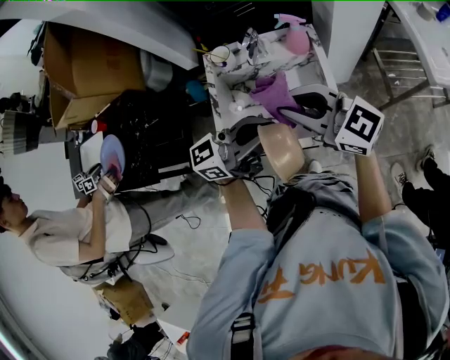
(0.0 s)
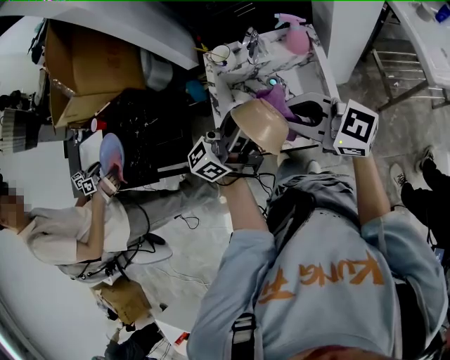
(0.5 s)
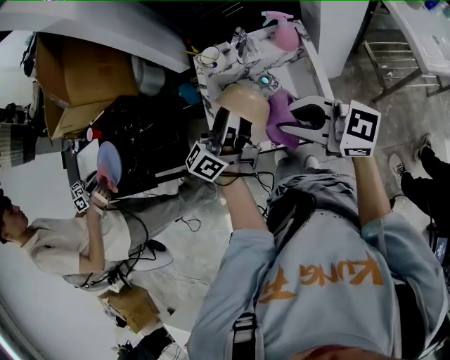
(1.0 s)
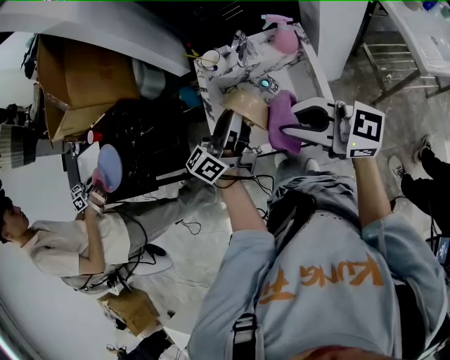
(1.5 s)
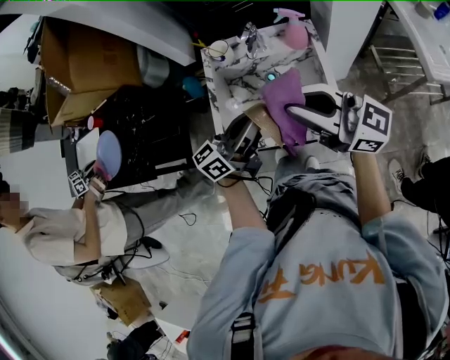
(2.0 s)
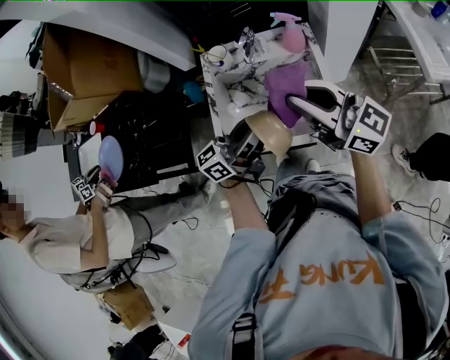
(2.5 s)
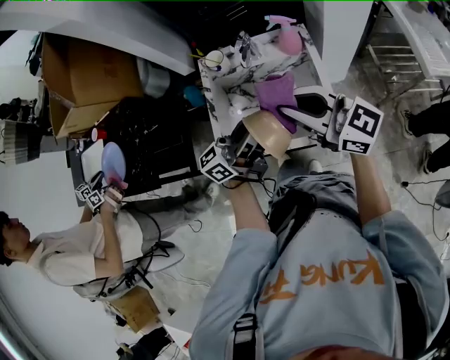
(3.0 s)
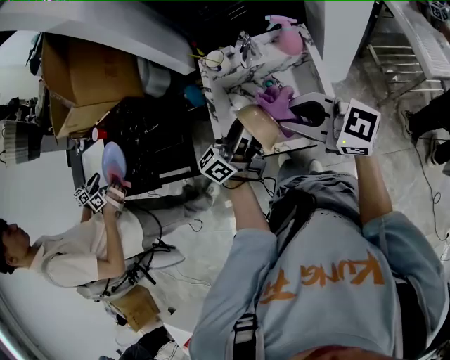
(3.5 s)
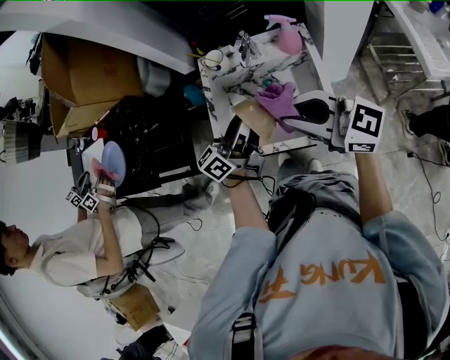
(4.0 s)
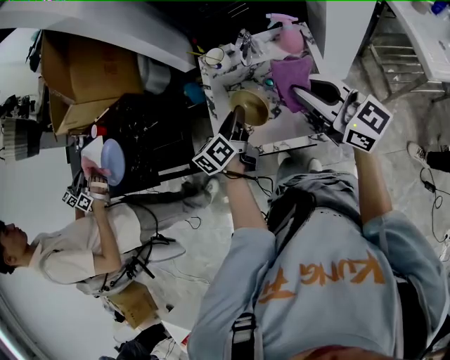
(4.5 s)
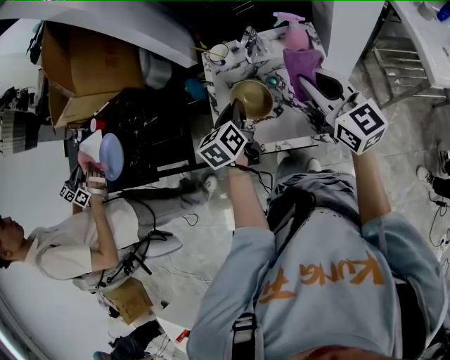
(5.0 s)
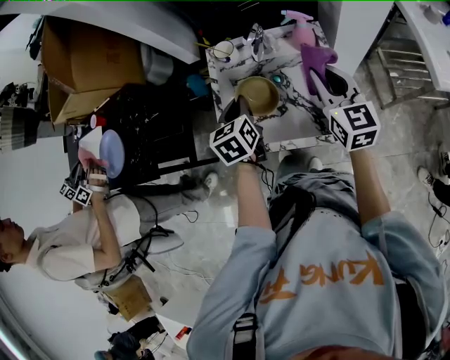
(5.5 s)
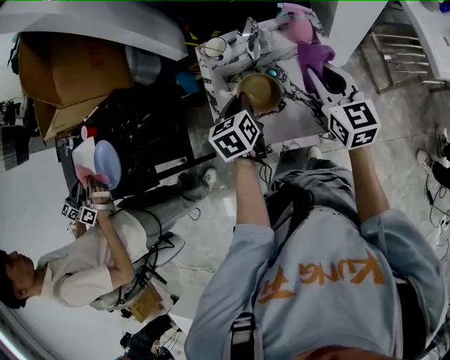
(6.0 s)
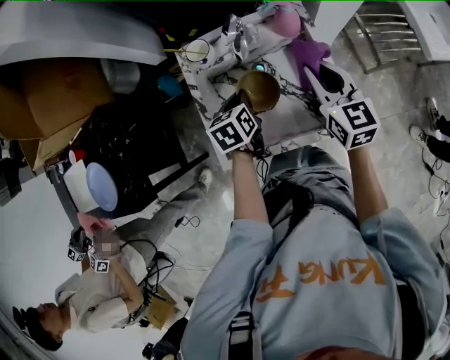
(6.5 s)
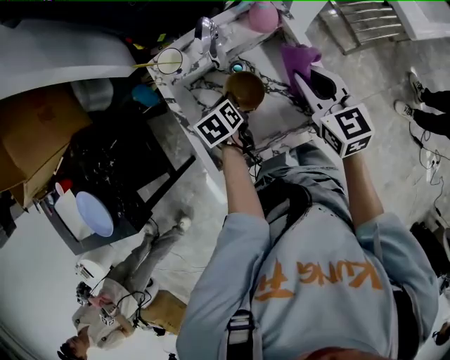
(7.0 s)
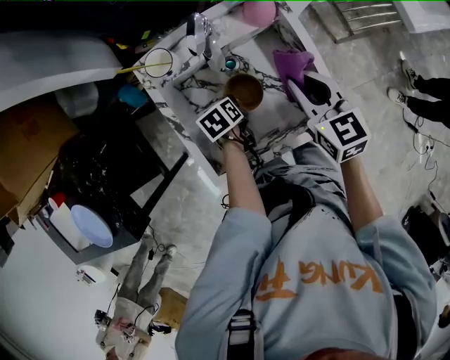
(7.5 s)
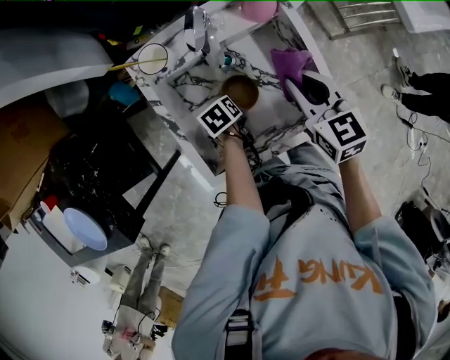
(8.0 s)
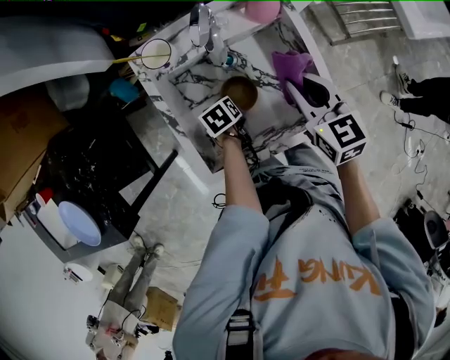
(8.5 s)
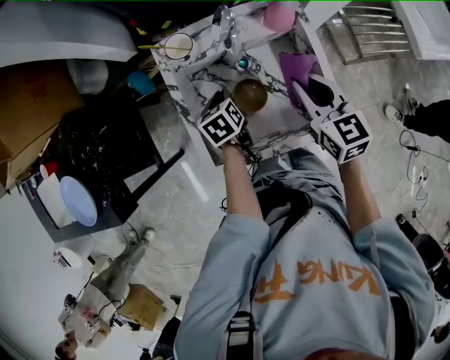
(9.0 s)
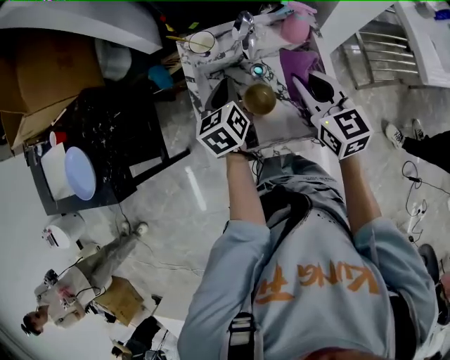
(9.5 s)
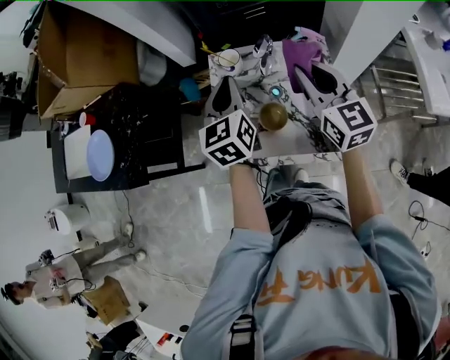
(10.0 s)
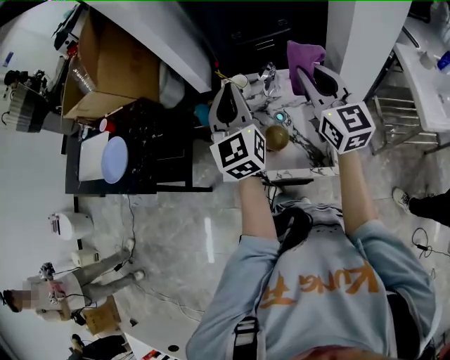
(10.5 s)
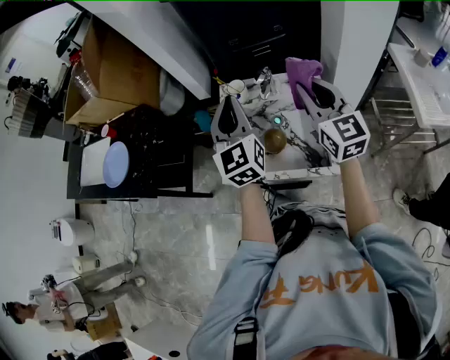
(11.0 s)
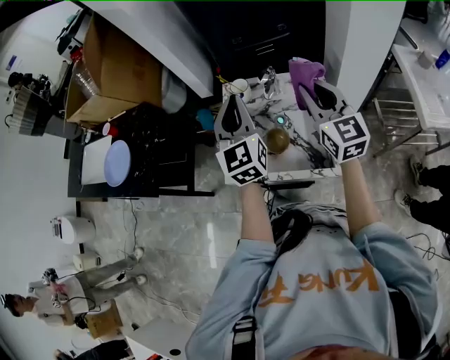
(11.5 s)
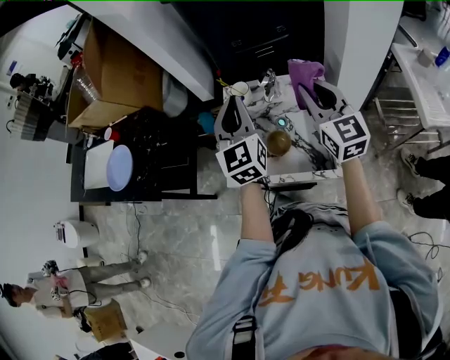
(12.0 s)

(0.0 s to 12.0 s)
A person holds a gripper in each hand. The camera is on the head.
0.0 s - 2.0 s: The left gripper moves downward, some 5 cm, and turns by approximately 20 degrees. Meanwhile the right gripper swivels about 20 degrees.
4.0 s - 6.0 s: The left gripper heads downward and forward, covering some 15 cm, and angles its fingers downward, by roughly 50 degrees. The right gripper goes some 15 cm forward, downward and to the right, and turns by some 50 degrees.
6.0 s - 8.0 s: The left gripper heads downward, covering approximately 25 cm, and rotates approximately 40 degrees; the right gripper goes about 10 cm downward.
8.0 s - 10.0 s: The right gripper moves upward, approximately 15 cm, and rotates roughly 30 degrees. The left gripper moves upward, about 40 cm, and angles its fingers upward, by some 50 degrees.
10.0 s - 12.0 s: The left gripper is displaced upward and backward by some 10 cm, and turns by roughly 20 degrees. Meanwhile the right gripper moves upward, about 5 cm.

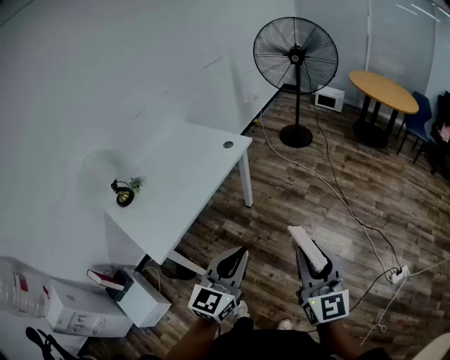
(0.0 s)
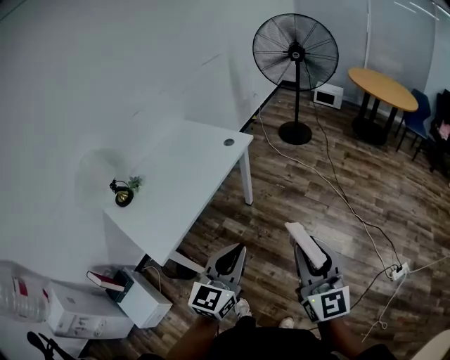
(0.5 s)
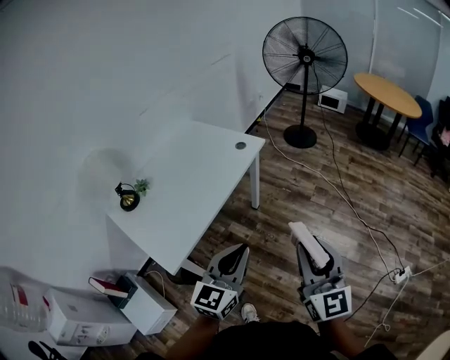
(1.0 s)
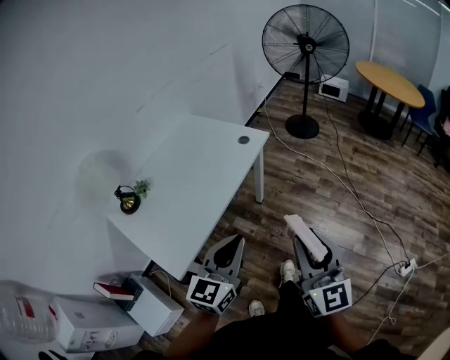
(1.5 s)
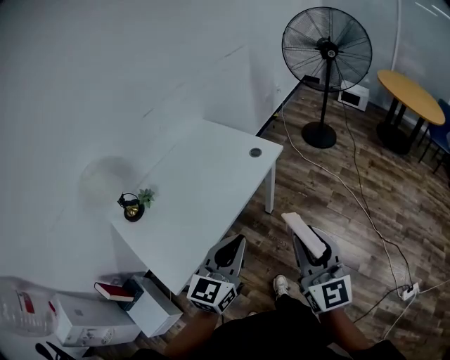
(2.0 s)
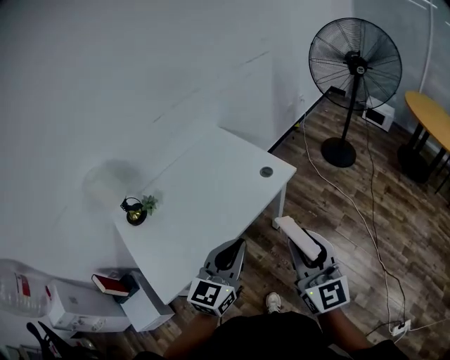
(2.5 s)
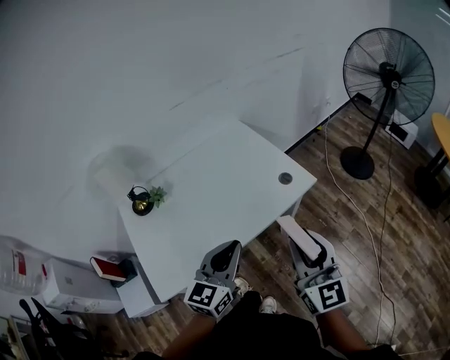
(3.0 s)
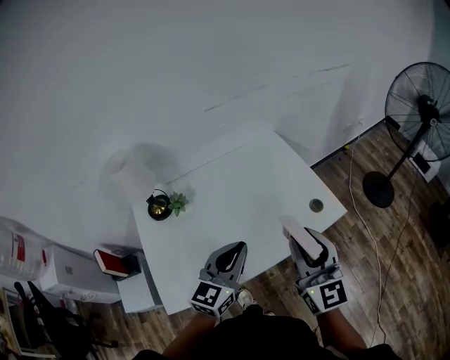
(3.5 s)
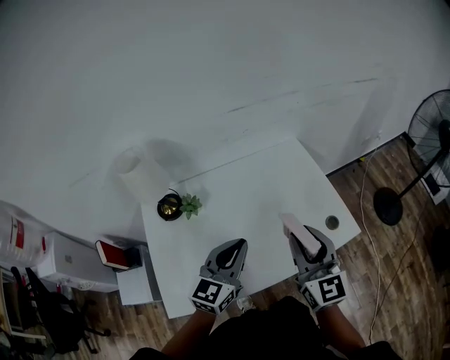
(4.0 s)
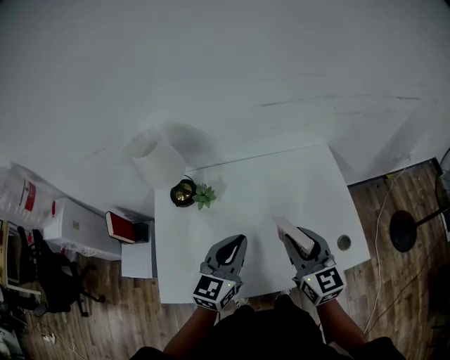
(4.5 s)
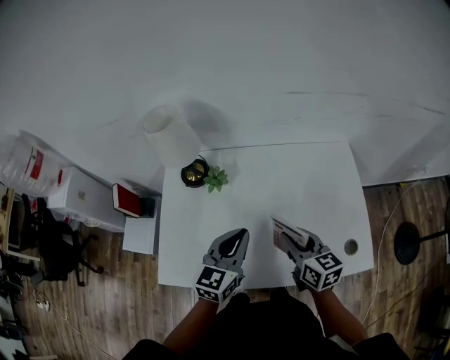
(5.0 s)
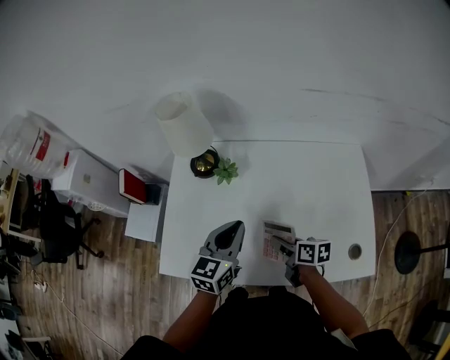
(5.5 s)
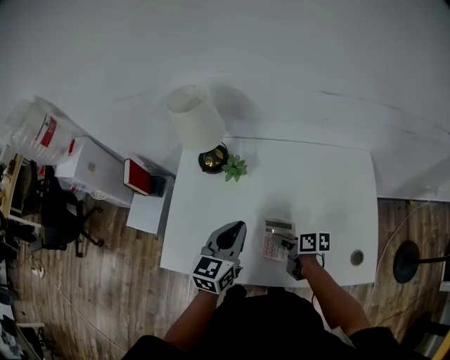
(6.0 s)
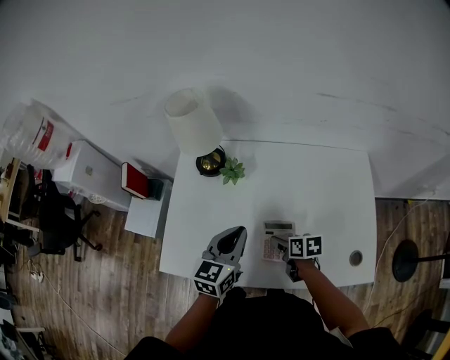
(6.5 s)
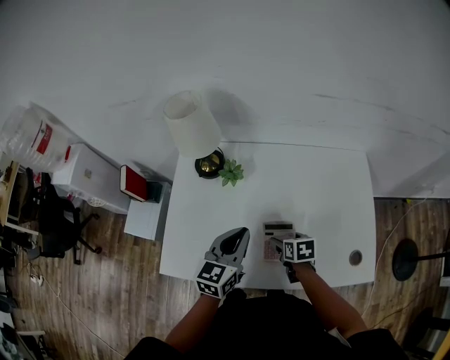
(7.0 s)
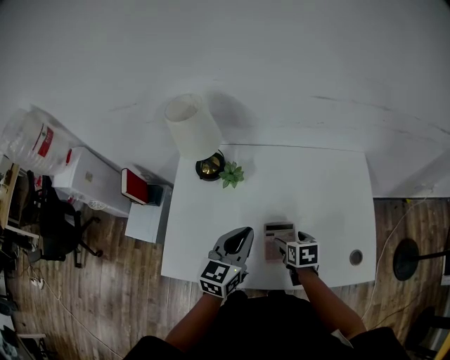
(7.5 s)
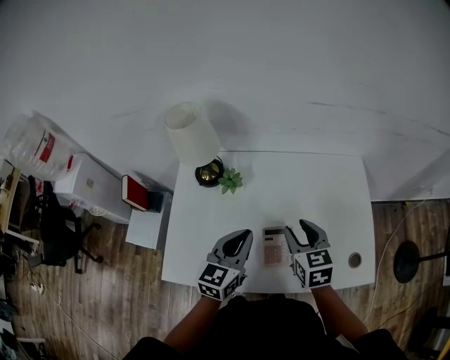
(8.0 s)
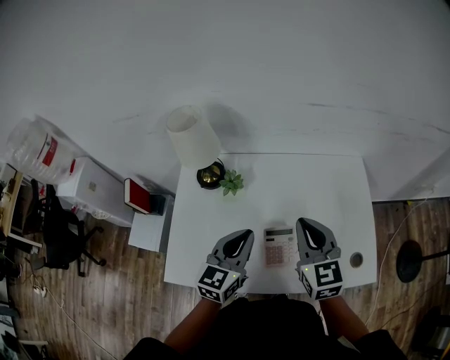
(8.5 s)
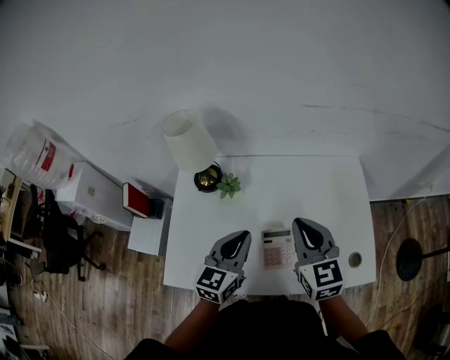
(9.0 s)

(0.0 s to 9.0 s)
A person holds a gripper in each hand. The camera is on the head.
0.0 s - 2.0 s: The two grippers go approximately 25 cm forward and to the left.
2.0 s - 4.5 s: The left gripper ends up approximately 40 cm from where it was, and swivels about 40 degrees; the right gripper changes place by some 50 cm, and swivels roughly 50 degrees.
4.5 s - 7.0 s: The left gripper shifts about 5 cm downward, while the right gripper moves downward, roughly 25 cm, angles its fingers downward, by about 50 degrees, and opens its fingers.
7.0 s - 9.0 s: The right gripper shifts approximately 30 cm upward, tilts its fingers about 40 degrees upward, and closes its fingers.

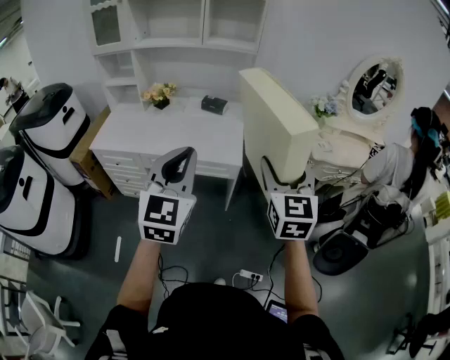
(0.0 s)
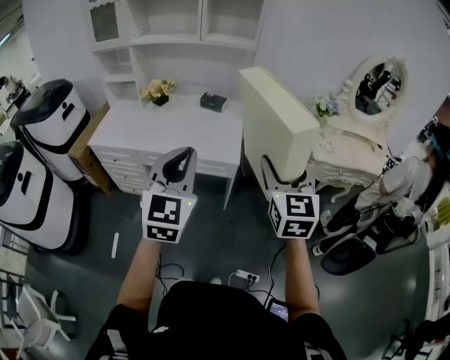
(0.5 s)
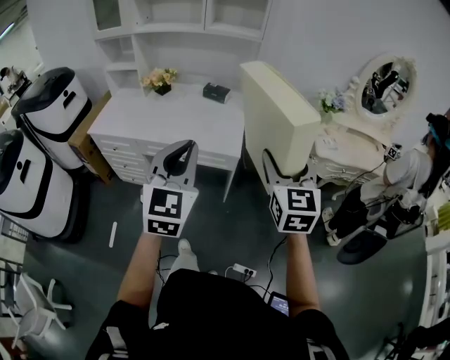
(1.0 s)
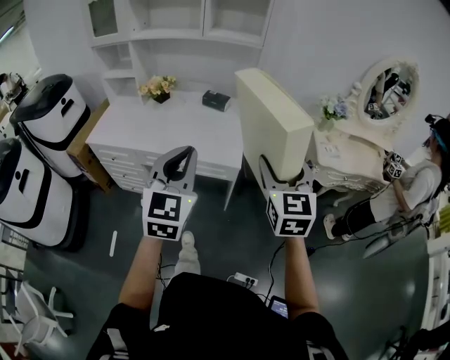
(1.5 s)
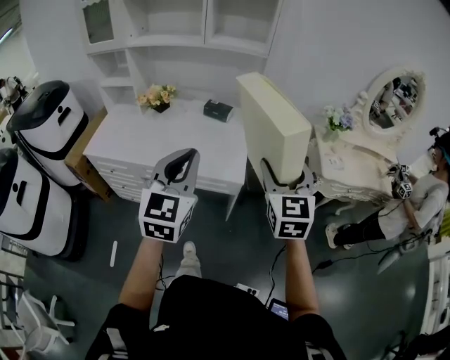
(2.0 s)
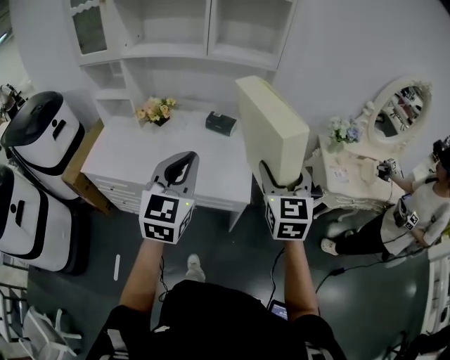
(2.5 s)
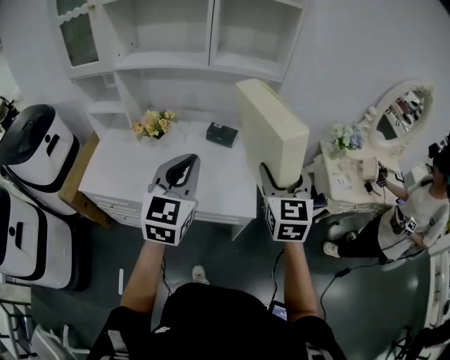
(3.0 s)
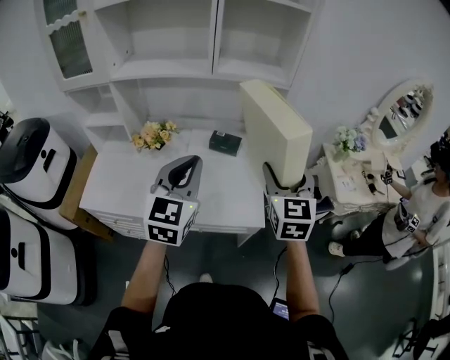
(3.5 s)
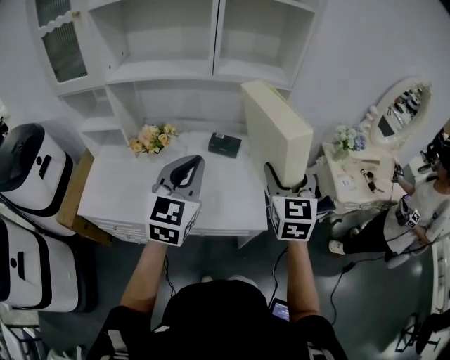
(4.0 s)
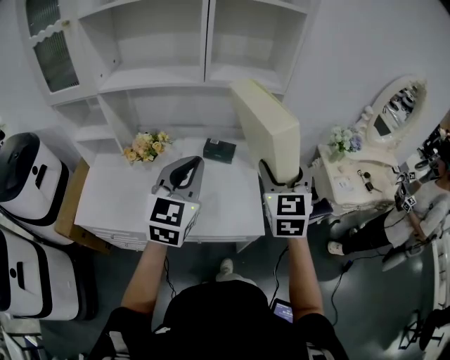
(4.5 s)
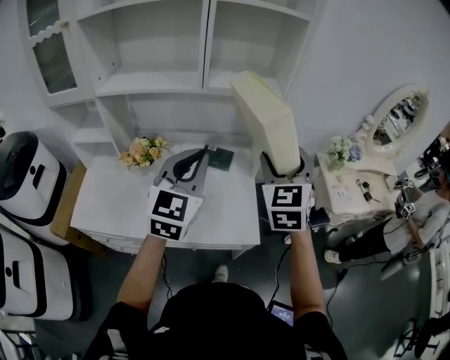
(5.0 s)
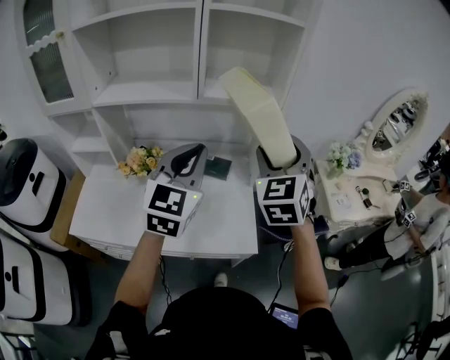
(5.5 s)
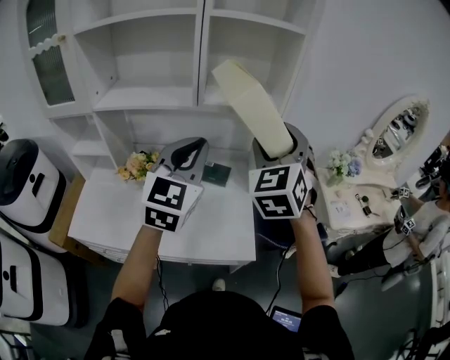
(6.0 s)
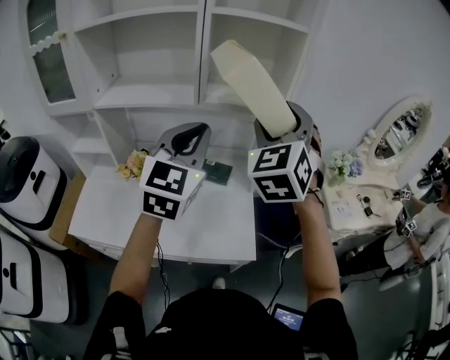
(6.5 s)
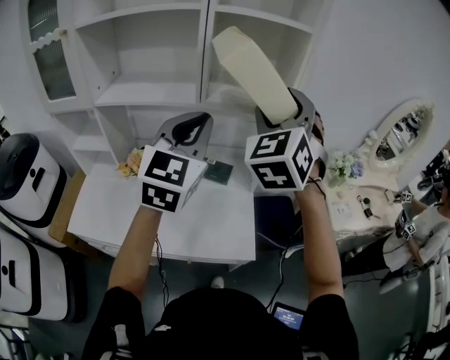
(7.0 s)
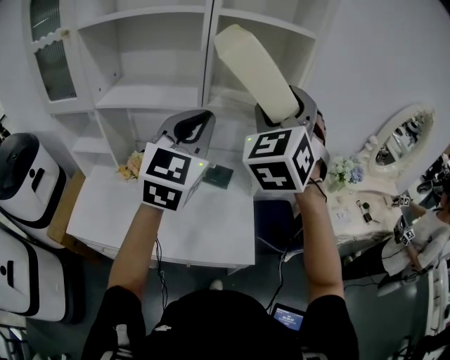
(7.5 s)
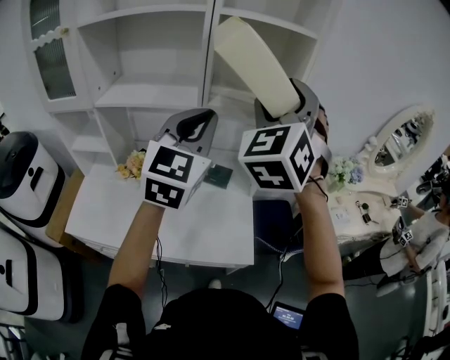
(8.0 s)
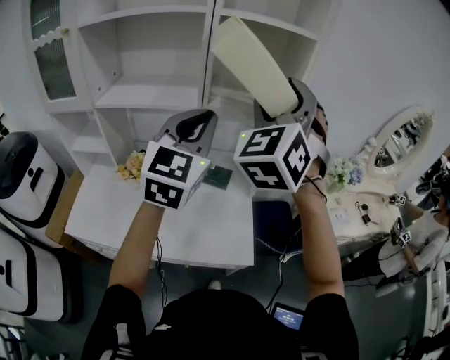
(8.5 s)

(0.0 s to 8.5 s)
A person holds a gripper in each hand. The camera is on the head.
0.0 s - 2.0 s: Both grippers move forward, roughly 15 cm.
2.0 s - 4.0 s: The grippers both shift forward and to the left by roughly 25 cm.
4.0 s - 6.5 s: The left gripper moves forward and upward, approximately 15 cm. The right gripper moves upward and forward, approximately 20 cm, and turns by some 30 degrees.
6.5 s - 8.5 s: The right gripper is displaced upward by about 5 cm.
